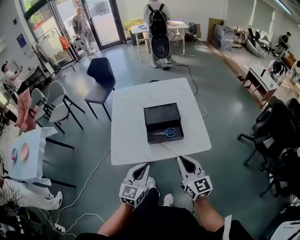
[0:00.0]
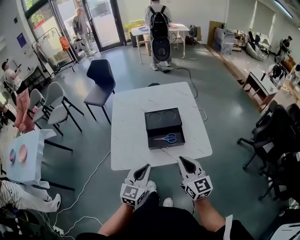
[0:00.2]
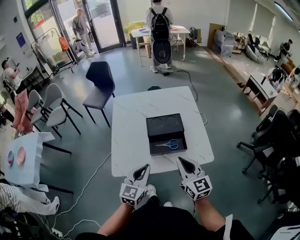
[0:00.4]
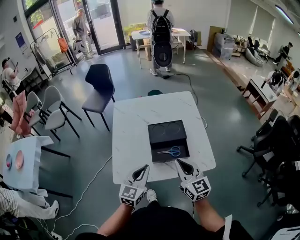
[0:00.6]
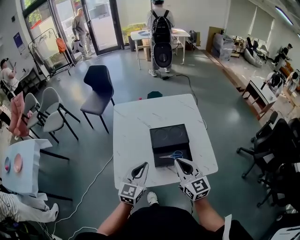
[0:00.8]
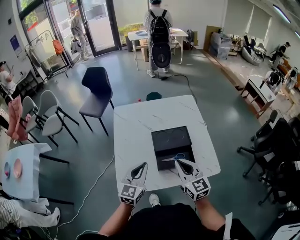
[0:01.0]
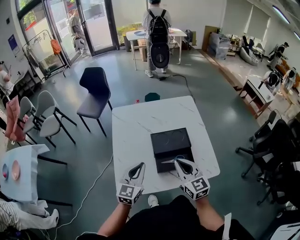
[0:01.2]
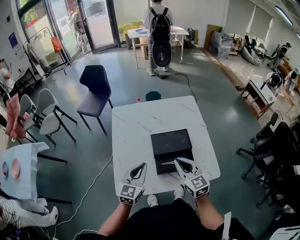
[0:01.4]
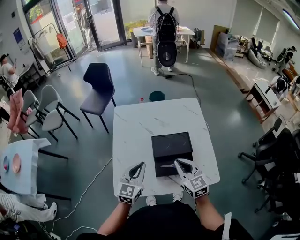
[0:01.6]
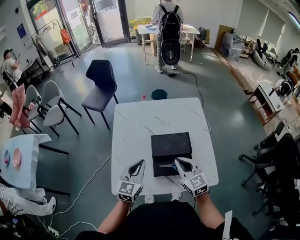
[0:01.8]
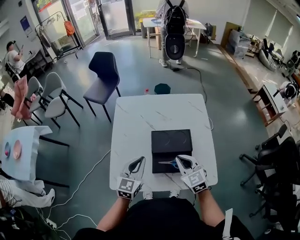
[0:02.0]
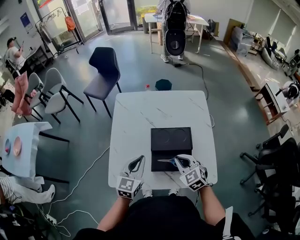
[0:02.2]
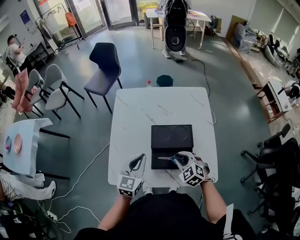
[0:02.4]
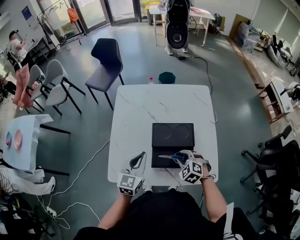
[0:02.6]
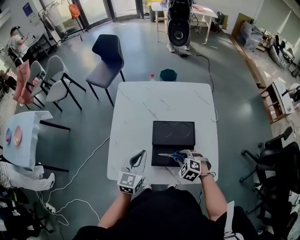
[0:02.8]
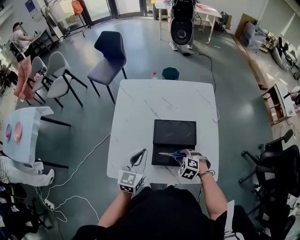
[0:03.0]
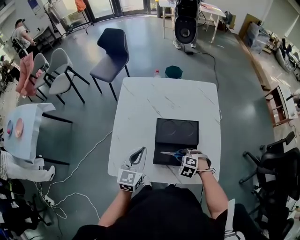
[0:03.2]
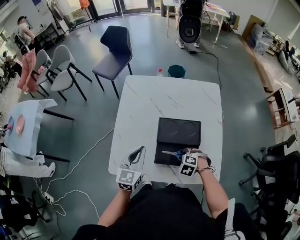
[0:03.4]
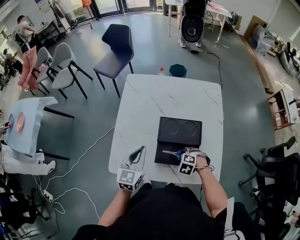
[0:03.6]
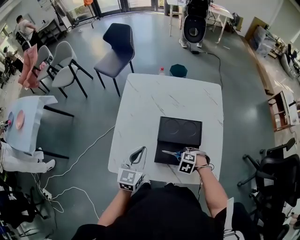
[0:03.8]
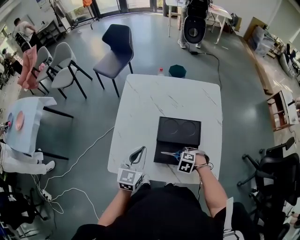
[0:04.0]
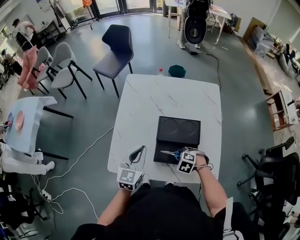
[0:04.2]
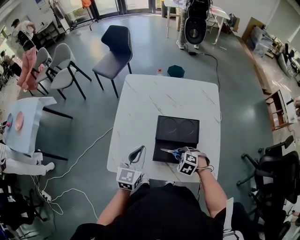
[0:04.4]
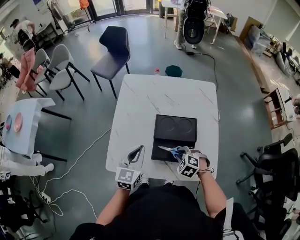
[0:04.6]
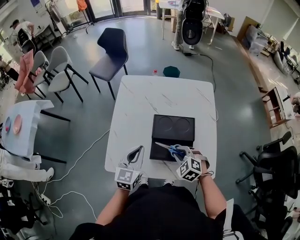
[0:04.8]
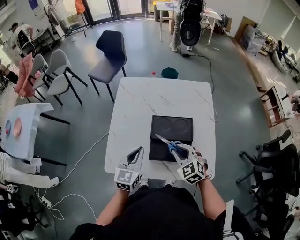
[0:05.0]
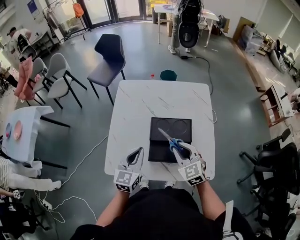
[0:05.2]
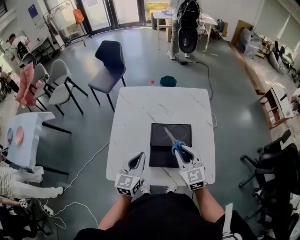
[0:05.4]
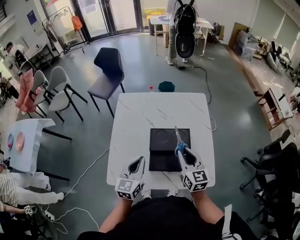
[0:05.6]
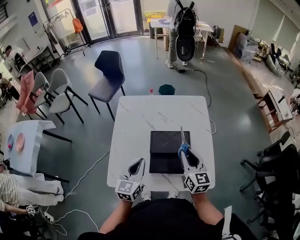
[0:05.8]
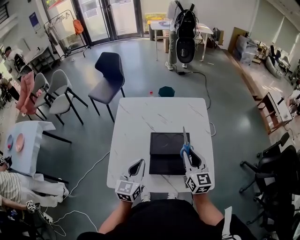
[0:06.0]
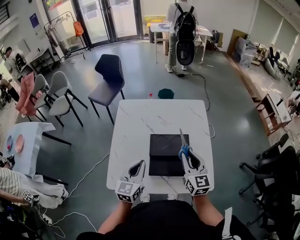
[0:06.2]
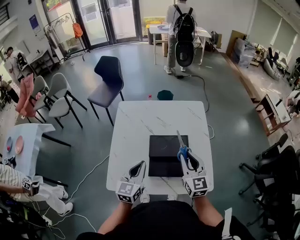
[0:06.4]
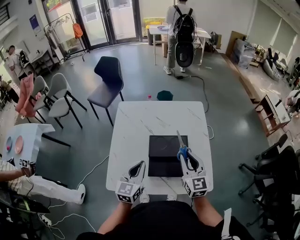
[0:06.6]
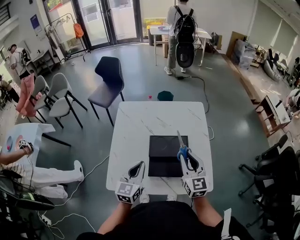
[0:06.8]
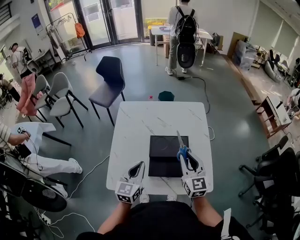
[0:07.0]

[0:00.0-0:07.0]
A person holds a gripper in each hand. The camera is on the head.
0:00.0 to 0:01.4: The right gripper travels forward and to the left by approximately 20 cm. The left gripper is displaced forward by some 20 cm.
0:01.4 to 0:02.8: The right gripper moves downward, some 20 cm, tilts its fingers roughly 50 degrees downward, and opens. Meanwhile the left gripper changes place by some 5 cm.
0:02.8 to 0:04.2: The right gripper shifts by approximately 5 cm.
0:04.2 to 0:05.6: The right gripper travels upward by about 20 cm, and tips its fingers upward by some 60 degrees.
0:05.6 to 0:07.0: The grippers stay close to where they were, moving slightly.

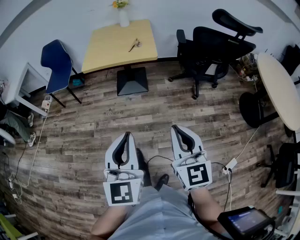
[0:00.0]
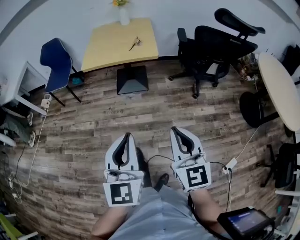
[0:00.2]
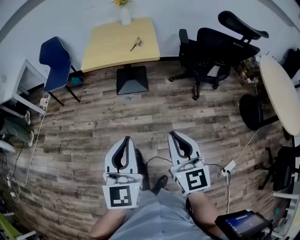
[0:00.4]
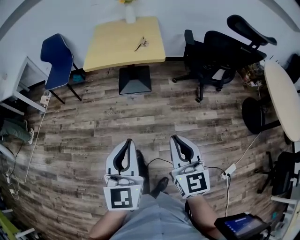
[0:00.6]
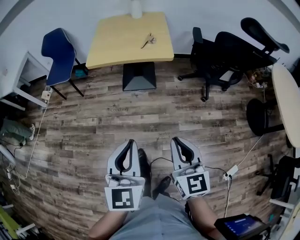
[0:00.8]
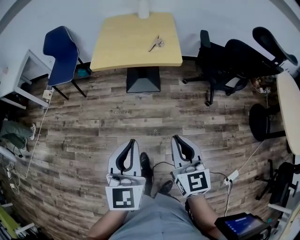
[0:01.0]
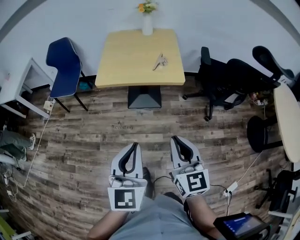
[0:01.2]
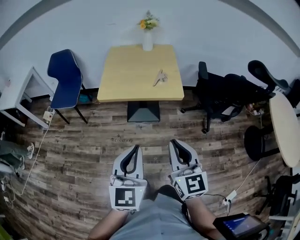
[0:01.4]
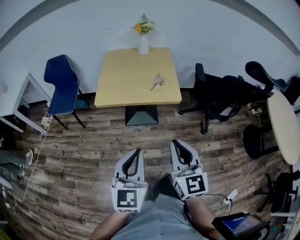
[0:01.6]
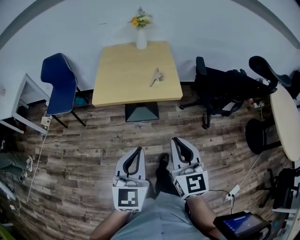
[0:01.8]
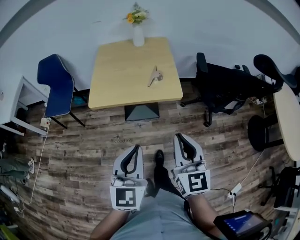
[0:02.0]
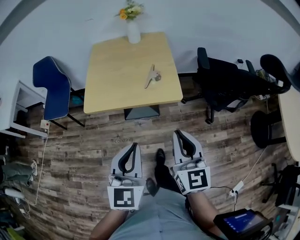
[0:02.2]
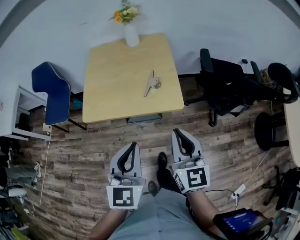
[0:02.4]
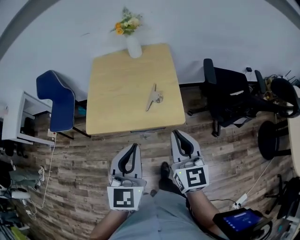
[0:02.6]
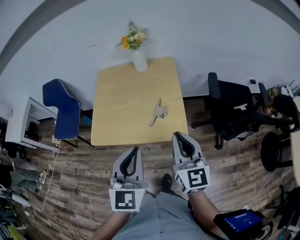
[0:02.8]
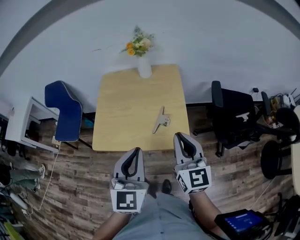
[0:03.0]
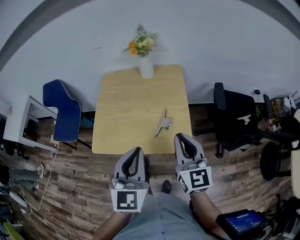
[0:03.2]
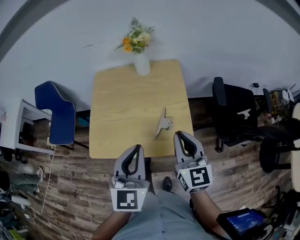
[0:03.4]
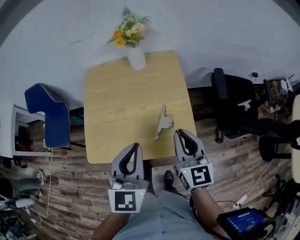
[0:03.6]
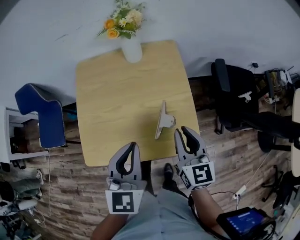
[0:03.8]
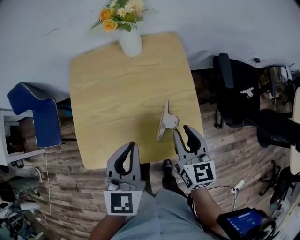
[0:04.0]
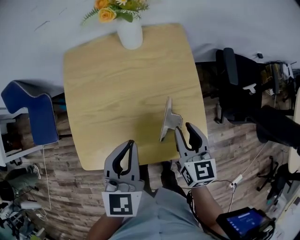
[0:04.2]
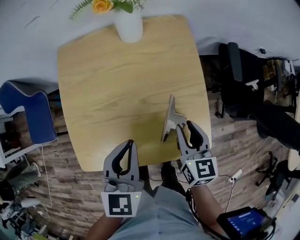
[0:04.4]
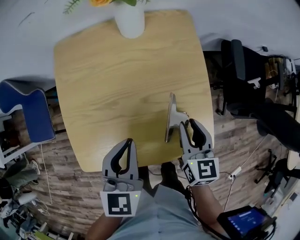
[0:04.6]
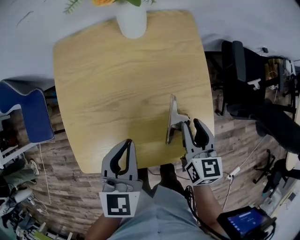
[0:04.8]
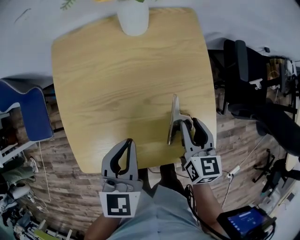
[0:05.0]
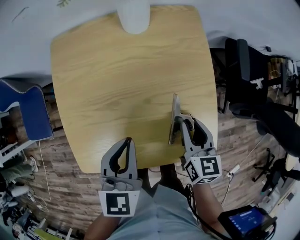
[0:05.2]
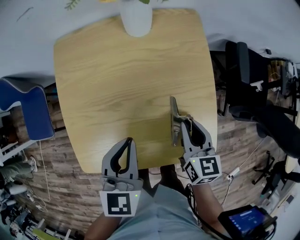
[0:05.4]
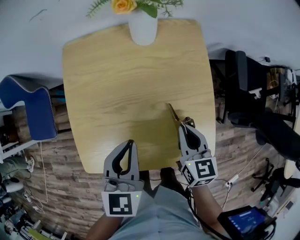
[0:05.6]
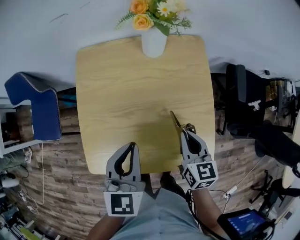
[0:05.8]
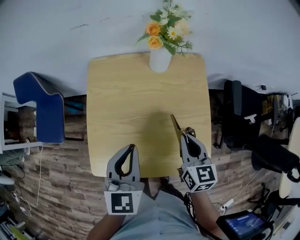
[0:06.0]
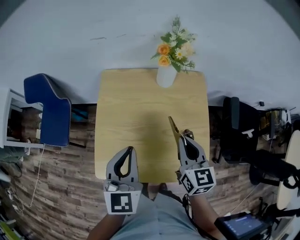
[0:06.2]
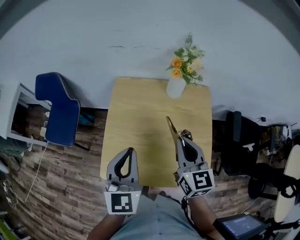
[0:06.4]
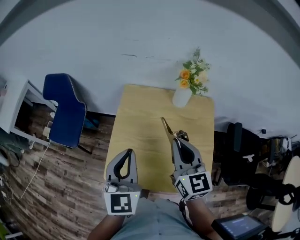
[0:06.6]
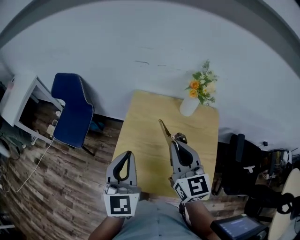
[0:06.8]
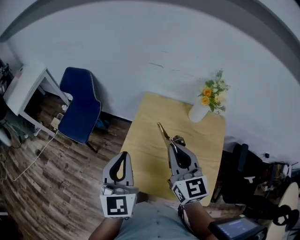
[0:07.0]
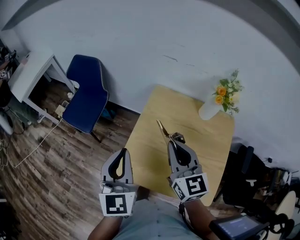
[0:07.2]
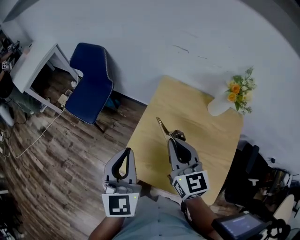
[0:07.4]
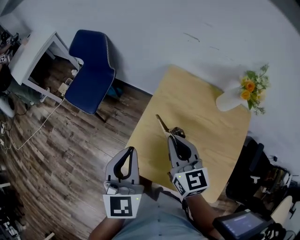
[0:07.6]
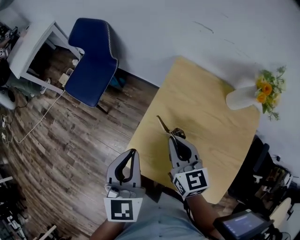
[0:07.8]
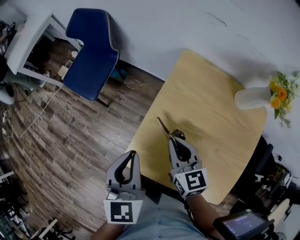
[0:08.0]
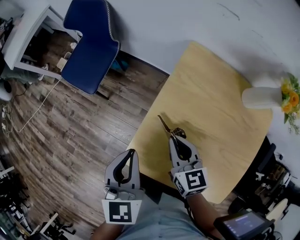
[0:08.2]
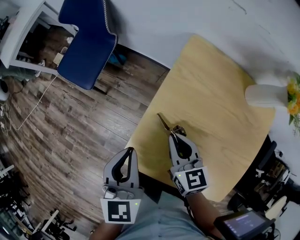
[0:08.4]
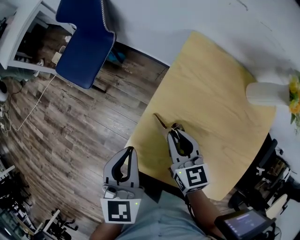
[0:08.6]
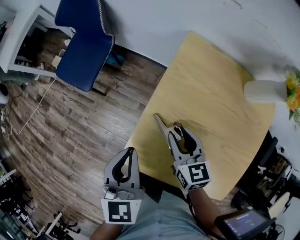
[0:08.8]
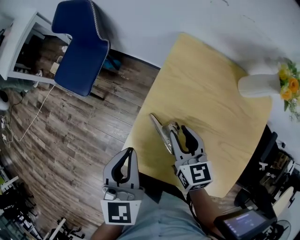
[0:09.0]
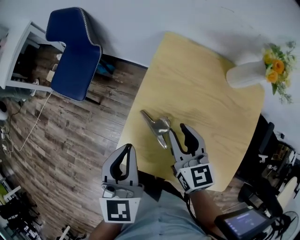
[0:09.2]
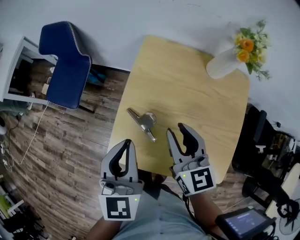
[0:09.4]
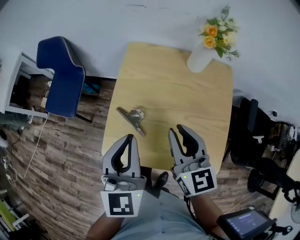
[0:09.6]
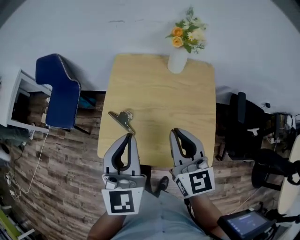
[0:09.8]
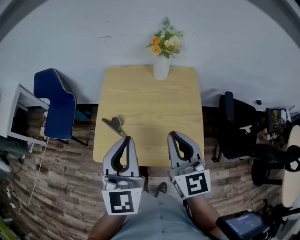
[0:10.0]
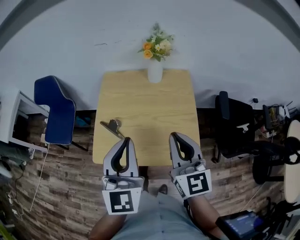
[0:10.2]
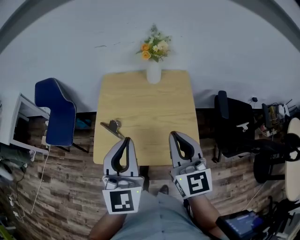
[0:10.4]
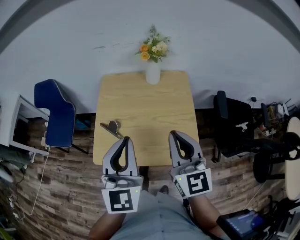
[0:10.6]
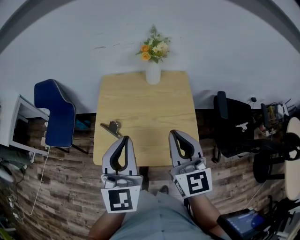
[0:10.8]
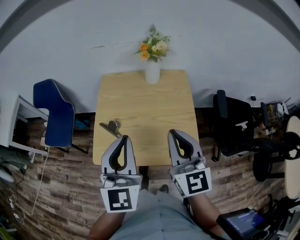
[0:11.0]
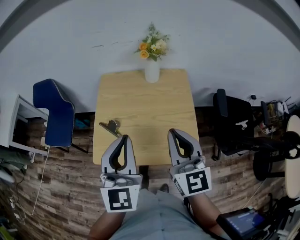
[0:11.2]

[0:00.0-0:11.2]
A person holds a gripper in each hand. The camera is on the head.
0:00.0 to 0:01.6: Both grippers move forward and to the left, about 30 cm.
0:01.6 to 0:03.2: Both grippers are carried forward, roughly 40 cm.
0:03.2 to 0:04.8: The left gripper is displaced forward, downward and to the left by about 35 cm, and swivels approximately 30 degrees. Meanwhile the right gripper is displaced downward and forward by approximately 30 cm, and changes its angle by some 30 degrees.
0:04.8 to 0:06.4: The grippers both shift upward and to the left by about 25 cm. The right gripper changes its angle by approximately 30 degrees, while the left gripper turns by approximately 30 degrees.
0:06.4 to 0:08.0: The right gripper moves roughly 30 cm, and swivels approximately 30 degrees; the left gripper moves some 25 cm, and swivels about 30 degrees.
0:08.0 to 0:09.6: The left gripper is displaced to the right, backward and upward by some 15 cm, and turns by some 20 degrees. Meanwhile the right gripper heads backward, upward and to the right, covering some 20 cm, and swivels roughly 20 degrees.
0:09.6 to 0:11.2: The right gripper is displaced backward, to the right and upward by approximately 20 cm. Meanwhile the left gripper is displaced to the right, upward and backward by roughly 20 cm.

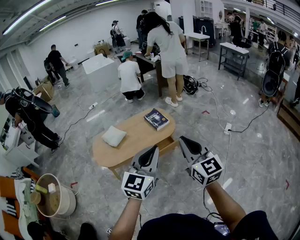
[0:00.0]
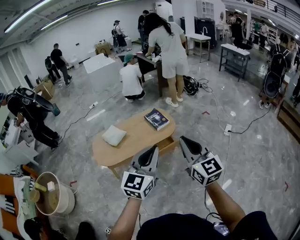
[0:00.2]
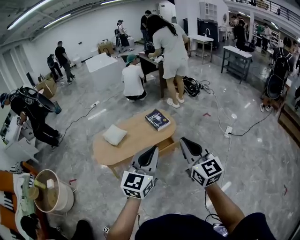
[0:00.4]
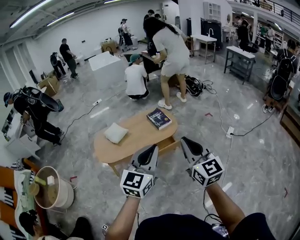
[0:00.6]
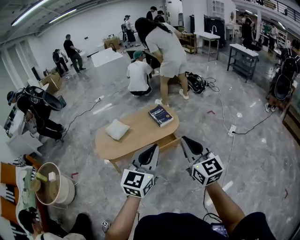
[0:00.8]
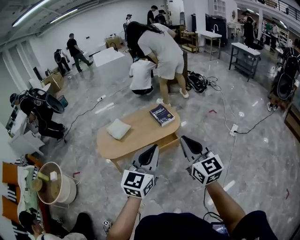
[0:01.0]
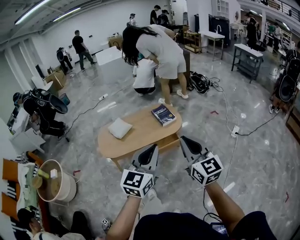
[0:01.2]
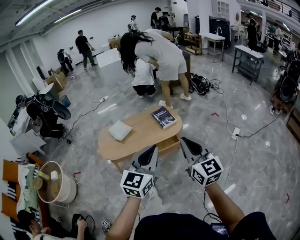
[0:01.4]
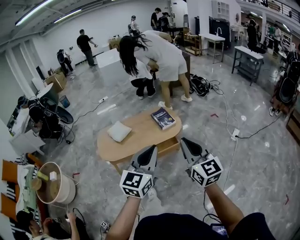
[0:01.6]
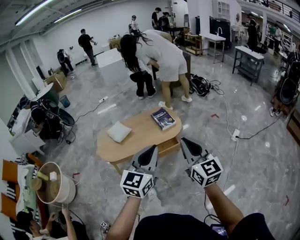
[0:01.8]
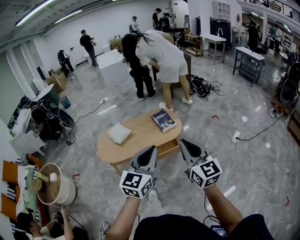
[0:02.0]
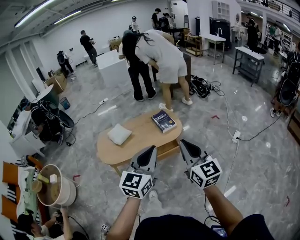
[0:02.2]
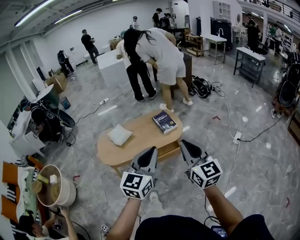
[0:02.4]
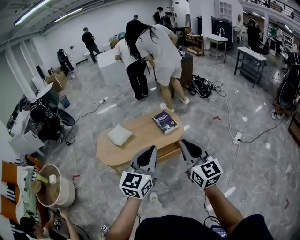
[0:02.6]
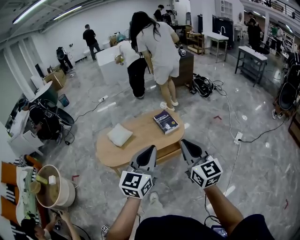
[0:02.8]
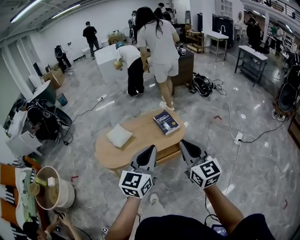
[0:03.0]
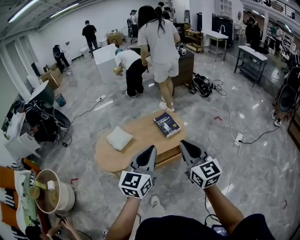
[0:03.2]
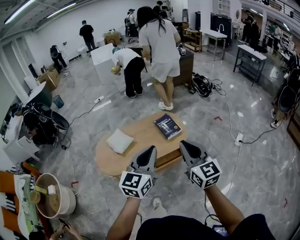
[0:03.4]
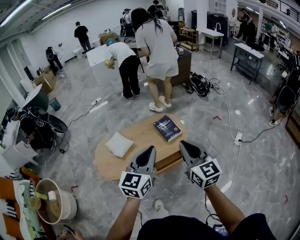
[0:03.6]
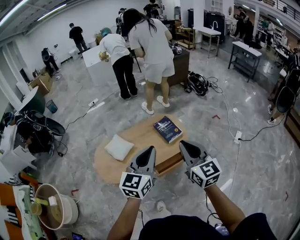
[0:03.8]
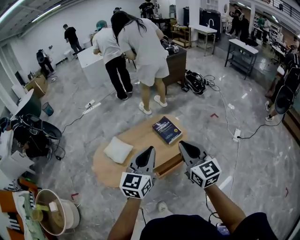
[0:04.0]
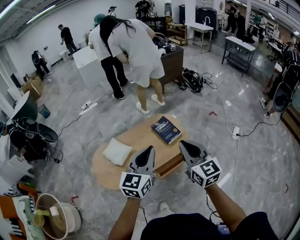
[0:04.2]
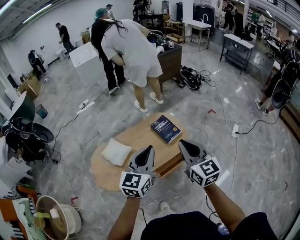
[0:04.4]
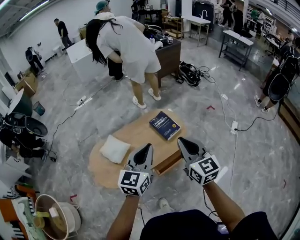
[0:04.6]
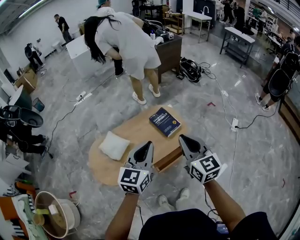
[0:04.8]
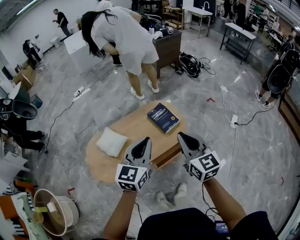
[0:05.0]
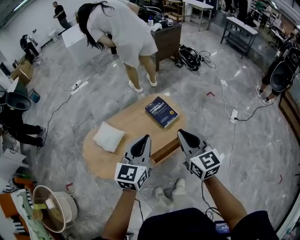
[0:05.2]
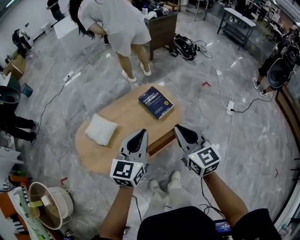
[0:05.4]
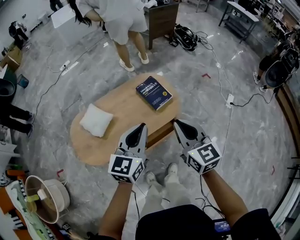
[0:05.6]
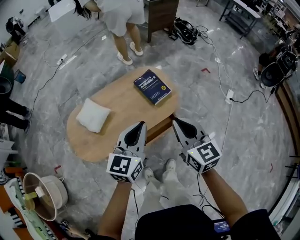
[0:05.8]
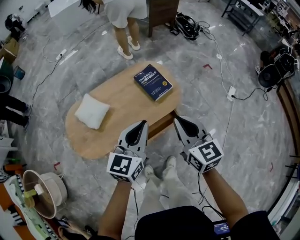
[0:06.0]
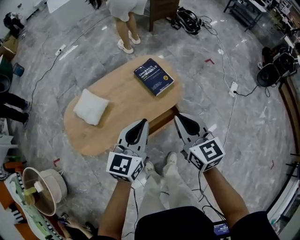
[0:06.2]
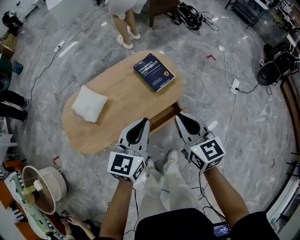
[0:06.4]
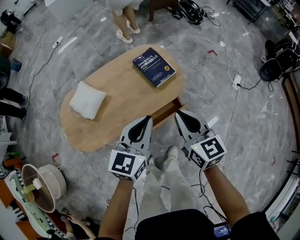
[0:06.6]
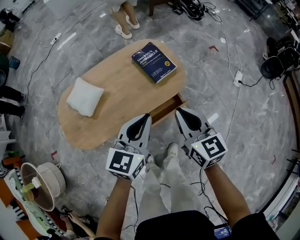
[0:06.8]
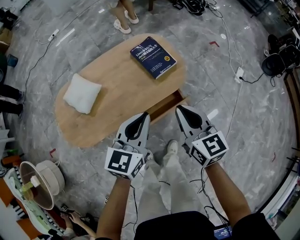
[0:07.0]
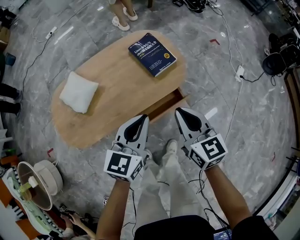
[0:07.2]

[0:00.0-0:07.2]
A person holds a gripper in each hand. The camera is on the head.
0:00.0 to 0:01.4: The grippers move only a little.
0:01.4 to 0:02.8: The grippers both shift forward by roughly 10 cm.
0:02.8 to 0:04.4: The grippers both shift forward and to the left by some 25 cm.
0:04.4 to 0:05.8: The grippers both shift downward by roughly 10 cm.
0:05.8 to 0:07.2: The two grippers go approximately 15 cm downward.
